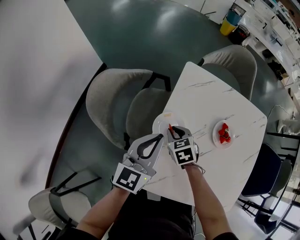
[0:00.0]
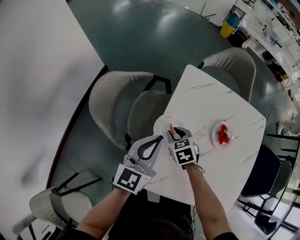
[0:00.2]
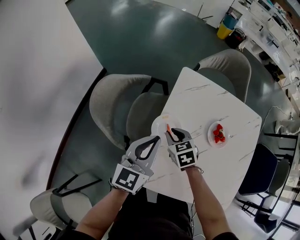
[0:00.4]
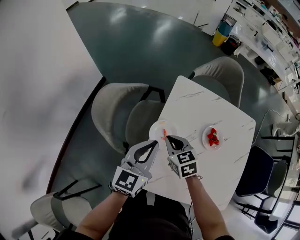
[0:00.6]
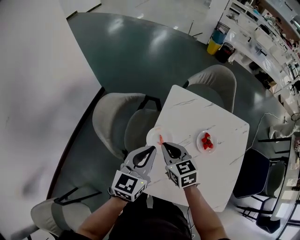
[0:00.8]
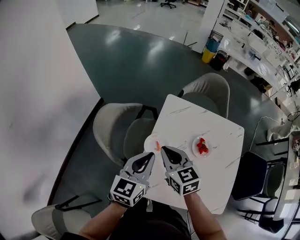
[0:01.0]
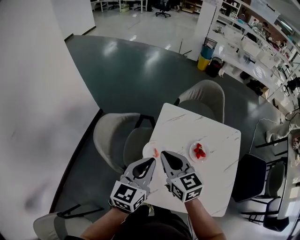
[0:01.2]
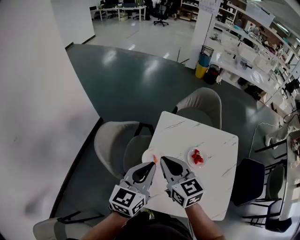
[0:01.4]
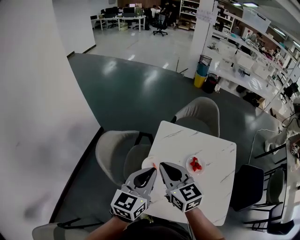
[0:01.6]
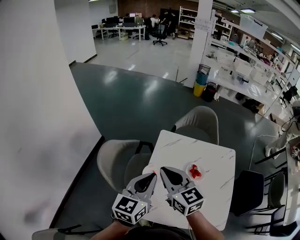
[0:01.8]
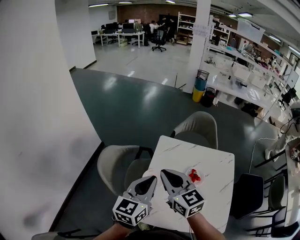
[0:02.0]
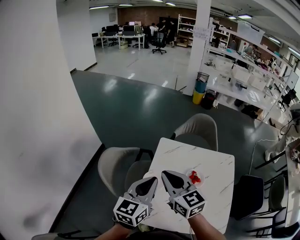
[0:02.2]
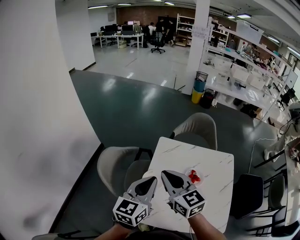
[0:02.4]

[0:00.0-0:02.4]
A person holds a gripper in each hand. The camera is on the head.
0:00.0 to 0:01.2: The left gripper travels upward by some 15 cm; the right gripper travels upward by some 30 cm, and angles its fingers upward, by some 30 degrees.
0:01.2 to 0:02.4: The grippers both shift upward by roughly 10 cm.

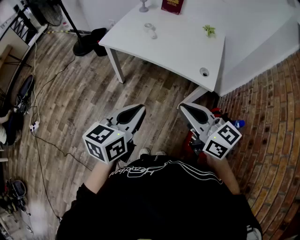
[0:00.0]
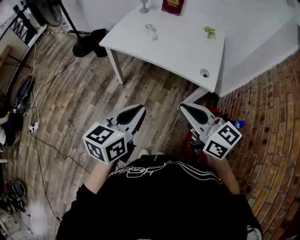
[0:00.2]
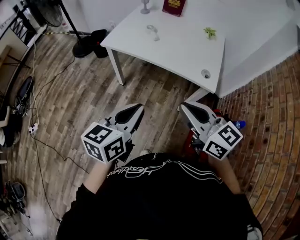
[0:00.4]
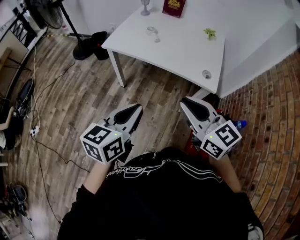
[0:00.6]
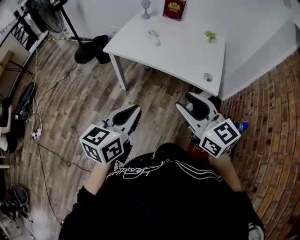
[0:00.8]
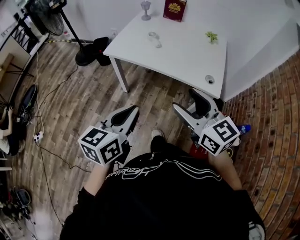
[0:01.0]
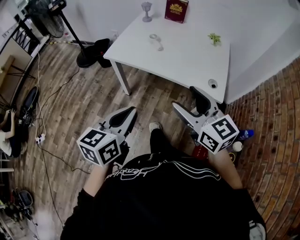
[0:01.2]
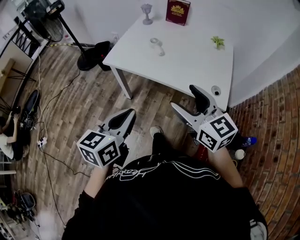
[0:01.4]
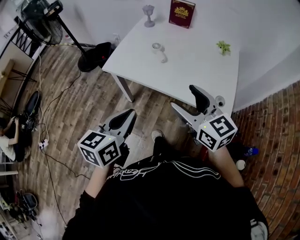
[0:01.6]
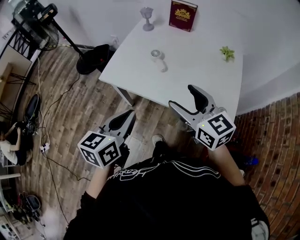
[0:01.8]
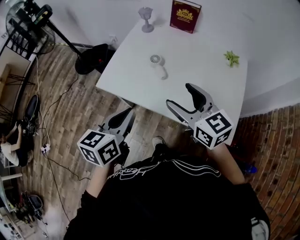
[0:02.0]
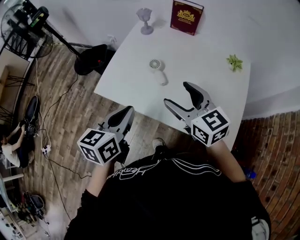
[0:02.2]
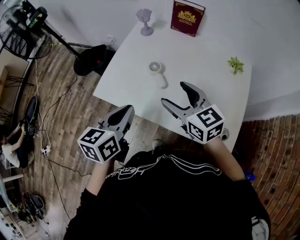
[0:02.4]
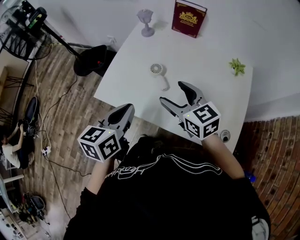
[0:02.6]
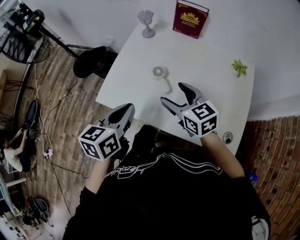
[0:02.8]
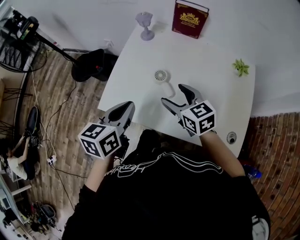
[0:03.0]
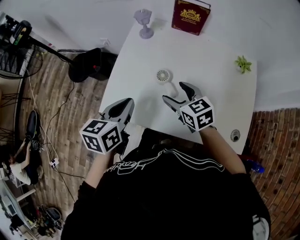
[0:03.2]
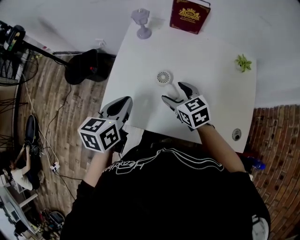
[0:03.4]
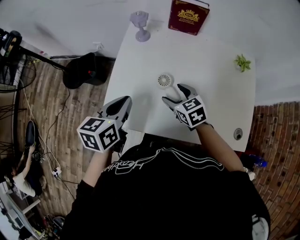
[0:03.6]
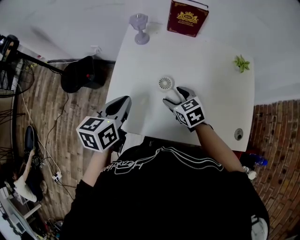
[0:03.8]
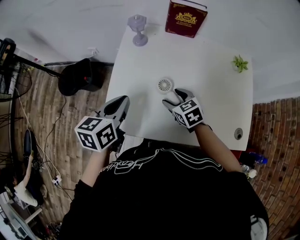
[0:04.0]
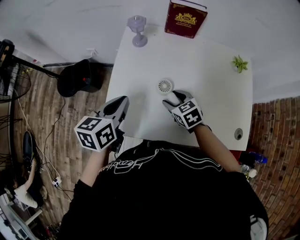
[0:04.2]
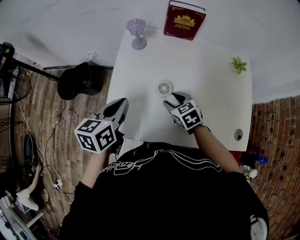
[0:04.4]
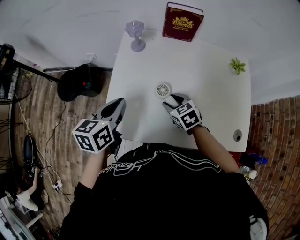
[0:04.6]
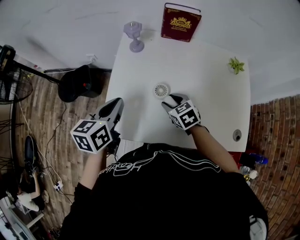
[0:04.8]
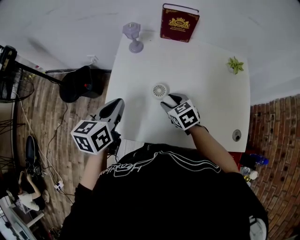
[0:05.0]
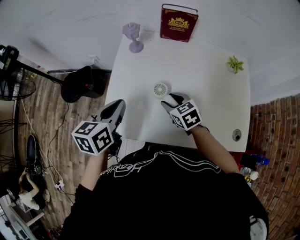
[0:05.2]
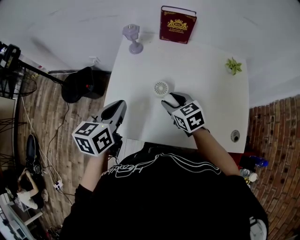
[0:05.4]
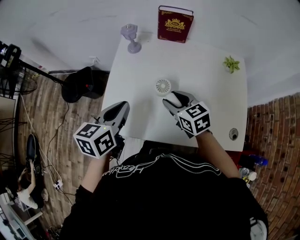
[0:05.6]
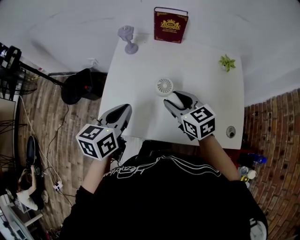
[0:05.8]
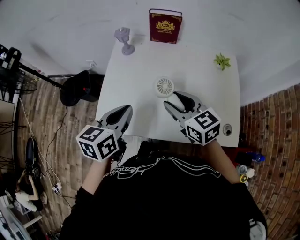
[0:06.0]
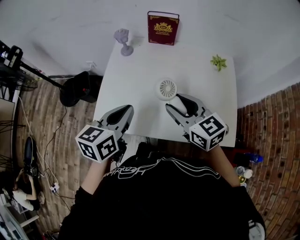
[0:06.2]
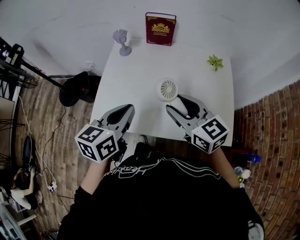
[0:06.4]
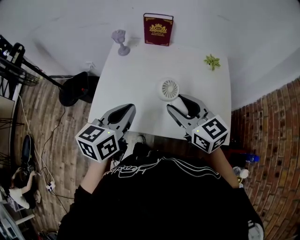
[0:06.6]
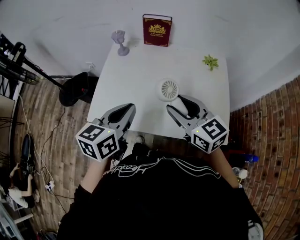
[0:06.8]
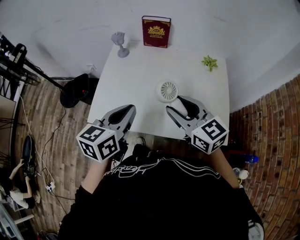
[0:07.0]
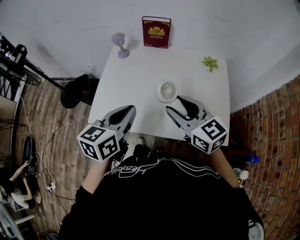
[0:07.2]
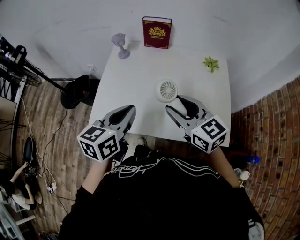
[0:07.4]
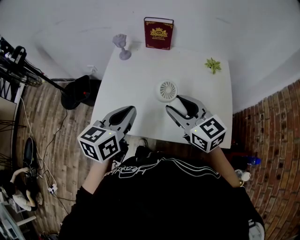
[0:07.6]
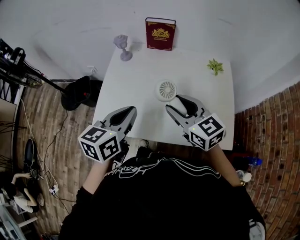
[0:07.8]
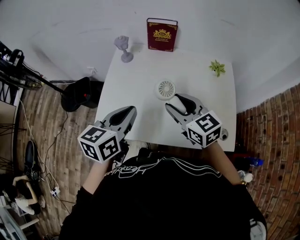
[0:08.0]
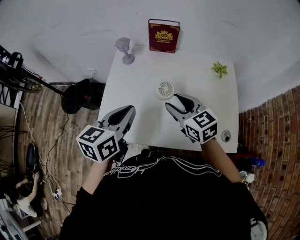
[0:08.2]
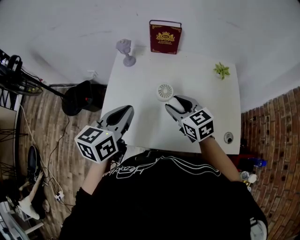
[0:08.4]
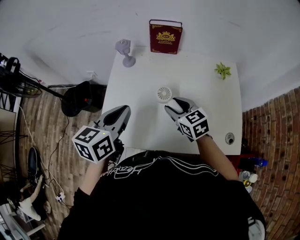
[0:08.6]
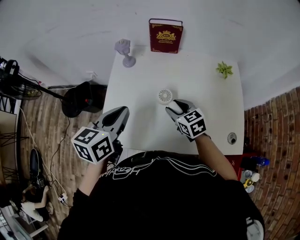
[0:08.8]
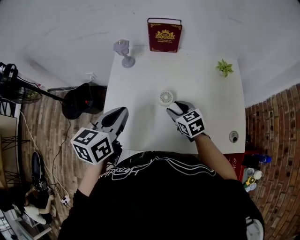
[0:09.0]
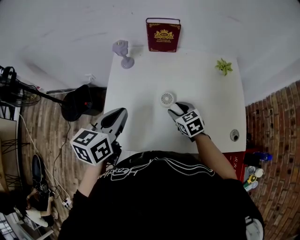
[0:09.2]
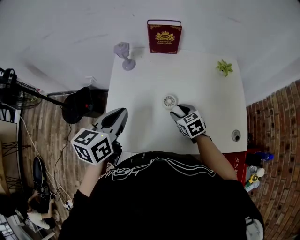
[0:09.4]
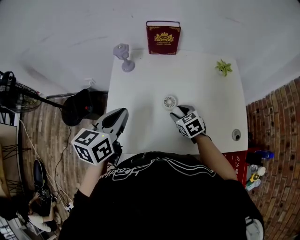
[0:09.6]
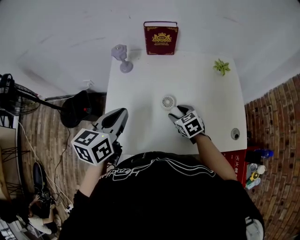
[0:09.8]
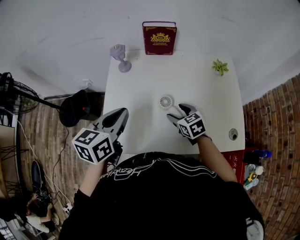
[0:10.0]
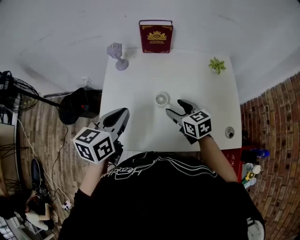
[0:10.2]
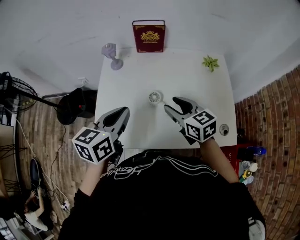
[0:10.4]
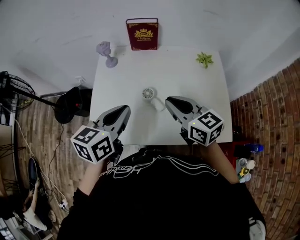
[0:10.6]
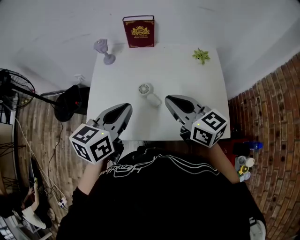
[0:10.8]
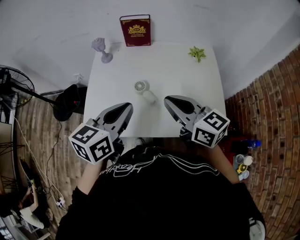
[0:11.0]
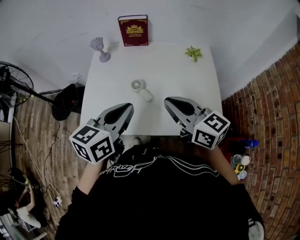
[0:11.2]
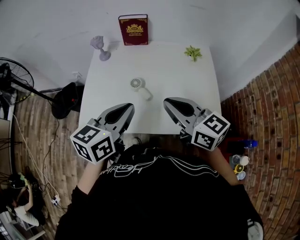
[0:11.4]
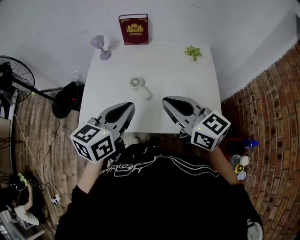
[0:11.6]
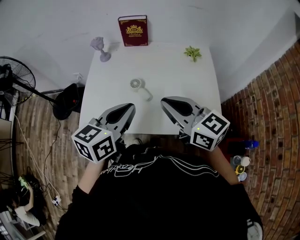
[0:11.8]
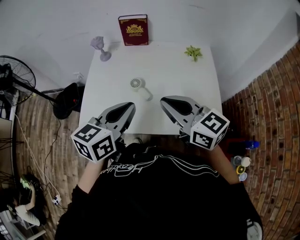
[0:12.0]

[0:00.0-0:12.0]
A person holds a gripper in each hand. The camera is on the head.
0:00.0 to 0:01.6: Both grippers move forward, about 20 cm. The right gripper opens up.
0:01.6 to 0:03.0: The left gripper is displaced forward by roughly 30 cm, while the right gripper moves forward and downward, some 30 cm.
0:03.0 to 0:04.4: The right gripper moves downward and forward, roughly 15 cm, turns by roughly 20 degrees, and closes its fingers, while the left gripper moves forward and to the left, roughly 10 cm.
0:04.4 to 0:06.0: The left gripper moves to the right, backward and upward, about 10 cm; the right gripper heads upward, covering about 20 cm, and rotates roughly 30 degrees.
0:06.0 to 0:07.6: The right gripper moves upward, some 5 cm. Meanwhile the left gripper heads to the right, covering roughly 5 cm.
0:07.6 to 0:09.0: The left gripper travels forward and to the left by some 10 cm, while the right gripper heads downward and forward, covering some 20 cm, and swivels some 30 degrees.
0:09.0 to 0:10.4: The right gripper is displaced upward by some 10 cm. The left gripper heads to the right, covering some 5 cm.
0:10.4 to 0:12.0: The left gripper goes approximately 15 cm to the right and backward. The right gripper travels backward and upward by some 15 cm, and closes its fingers.

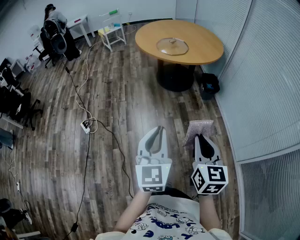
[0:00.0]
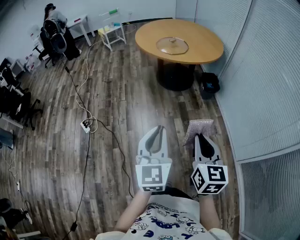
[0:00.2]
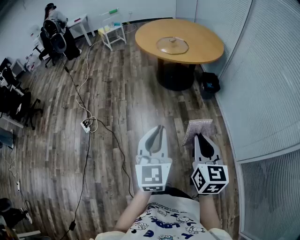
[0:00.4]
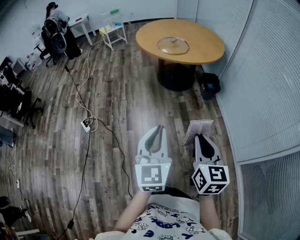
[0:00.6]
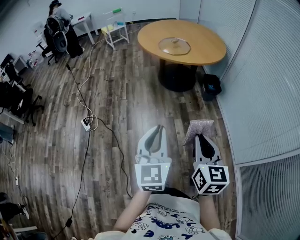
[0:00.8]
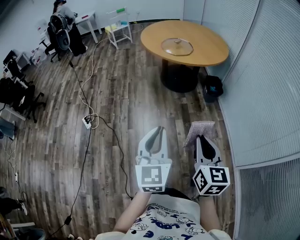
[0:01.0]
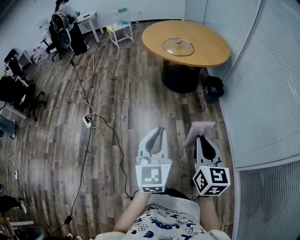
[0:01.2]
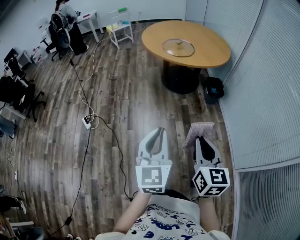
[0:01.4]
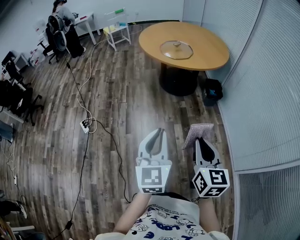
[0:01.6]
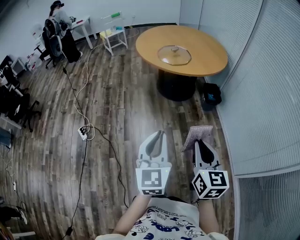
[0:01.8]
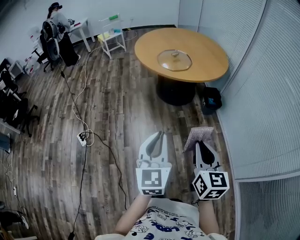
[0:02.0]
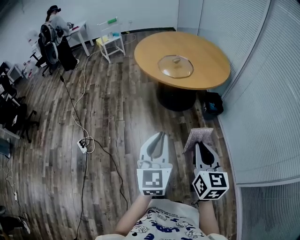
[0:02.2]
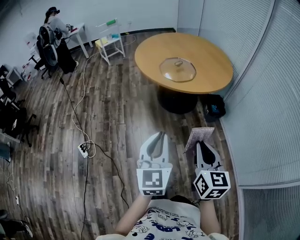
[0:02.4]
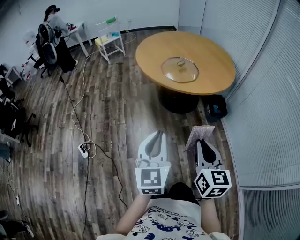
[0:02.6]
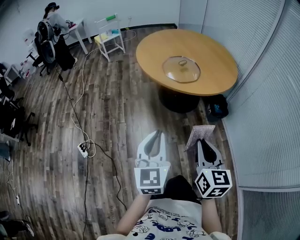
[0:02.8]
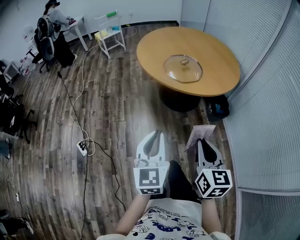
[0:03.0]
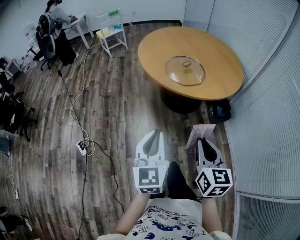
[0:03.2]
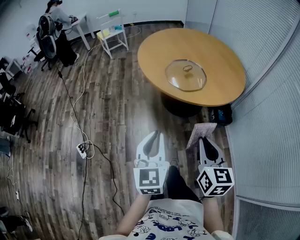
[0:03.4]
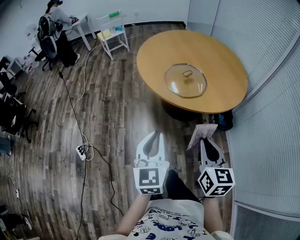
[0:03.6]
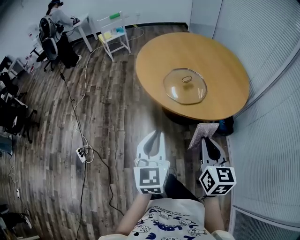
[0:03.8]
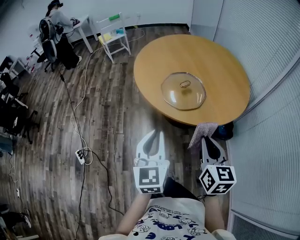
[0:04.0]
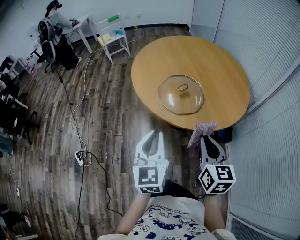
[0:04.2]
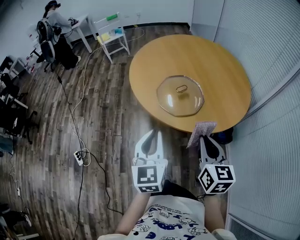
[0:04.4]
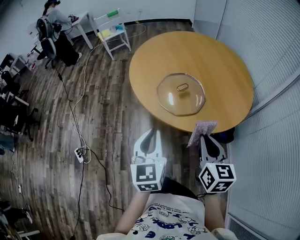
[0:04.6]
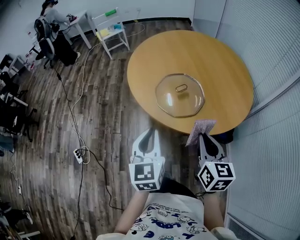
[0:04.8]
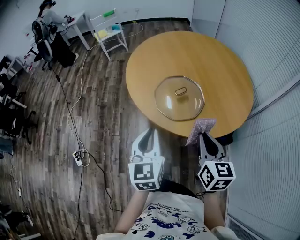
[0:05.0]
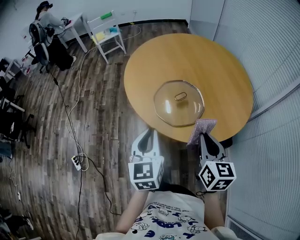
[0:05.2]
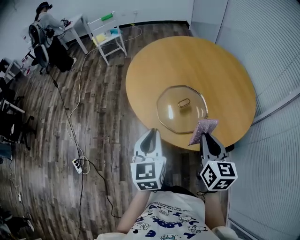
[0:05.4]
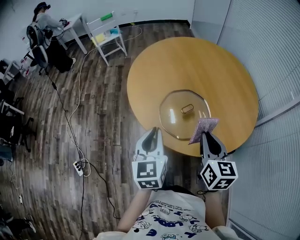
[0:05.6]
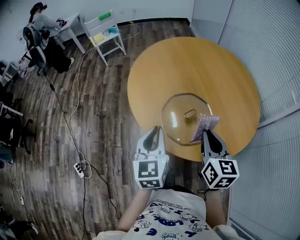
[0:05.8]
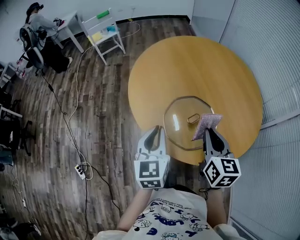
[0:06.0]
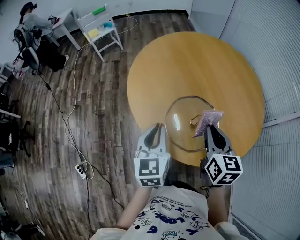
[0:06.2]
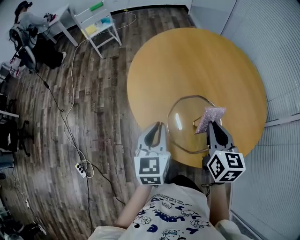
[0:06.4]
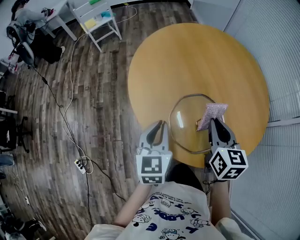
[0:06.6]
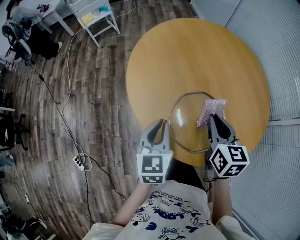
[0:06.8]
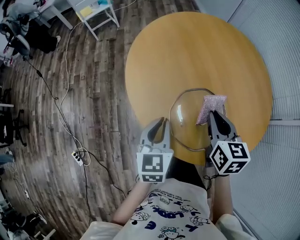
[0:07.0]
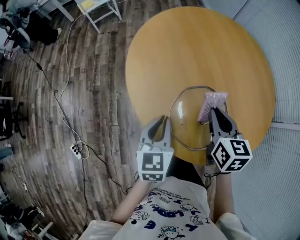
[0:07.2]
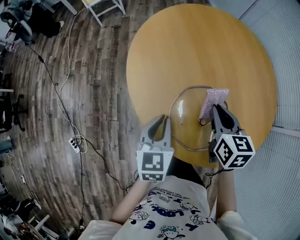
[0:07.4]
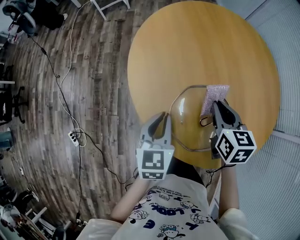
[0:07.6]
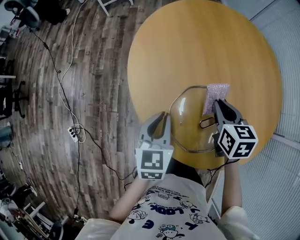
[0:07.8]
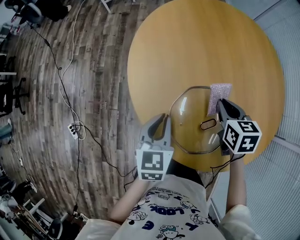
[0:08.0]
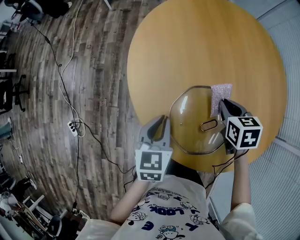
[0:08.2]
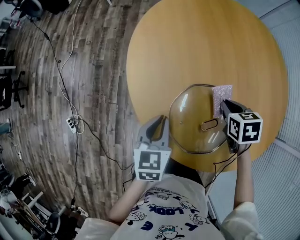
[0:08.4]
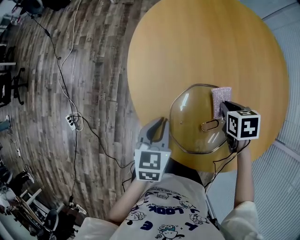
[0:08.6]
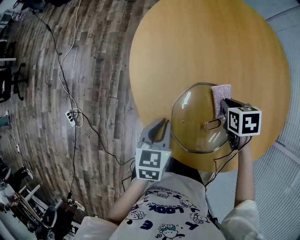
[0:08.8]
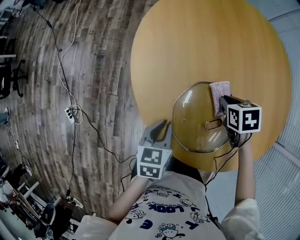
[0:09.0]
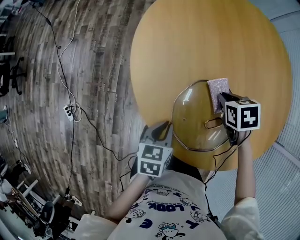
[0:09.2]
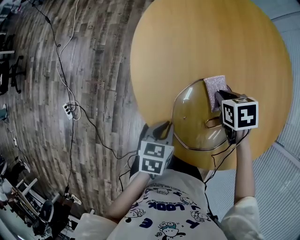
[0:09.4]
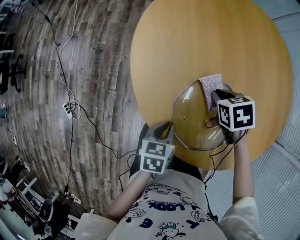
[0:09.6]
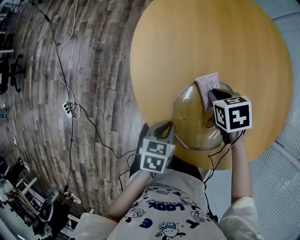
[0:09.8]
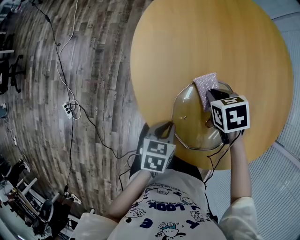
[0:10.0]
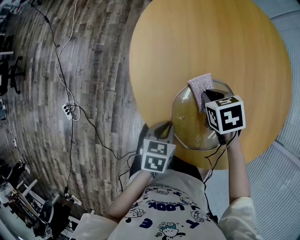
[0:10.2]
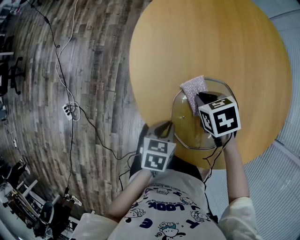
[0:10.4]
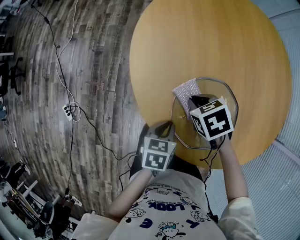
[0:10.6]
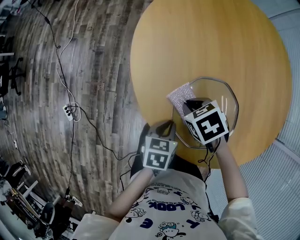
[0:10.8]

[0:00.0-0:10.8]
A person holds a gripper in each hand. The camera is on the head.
0:00.0 to 0:01.6: The right gripper ends up approximately 5 cm from where it was. Meanwhile the left gripper changes place by some 5 cm.
0:01.6 to 0:03.0: Both grippers move forward, approximately 25 cm.
0:03.0 to 0:04.6: The right gripper travels forward and to the right by approximately 30 cm, while the left gripper is displaced forward by roughly 25 cm.
0:04.6 to 0:06.2: Both grippers travel together forward, approximately 25 cm.
0:06.2 to 0:07.8: The right gripper heads forward and downward, covering approximately 15 cm, and swivels about 30 degrees. Meanwhile the left gripper is displaced downward and forward by approximately 10 cm.
0:07.8 to 0:09.2: The right gripper shifts about 10 cm downward, and rotates some 30 degrees. Meanwhile the left gripper goes approximately 10 cm downward and backward, and rotates about 20 degrees.
0:09.2 to 0:10.8: The right gripper is displaced to the left and backward by some 15 cm, and rotates some 20 degrees.
